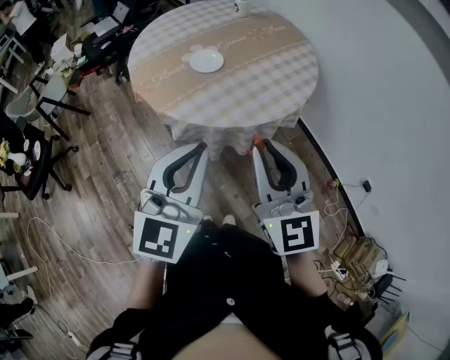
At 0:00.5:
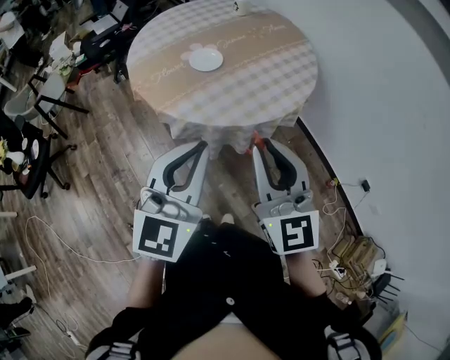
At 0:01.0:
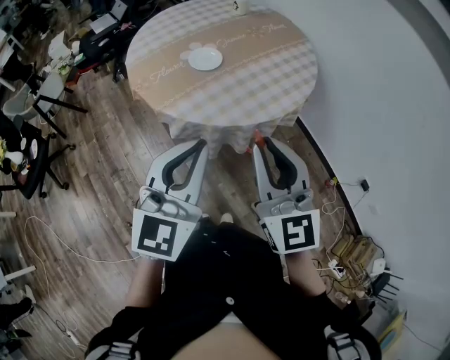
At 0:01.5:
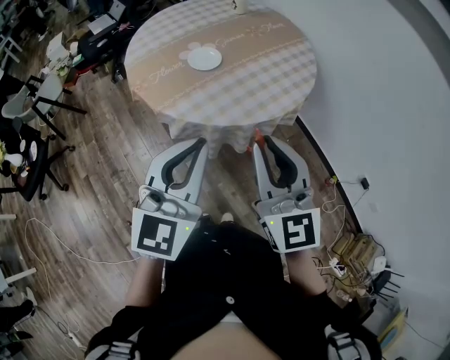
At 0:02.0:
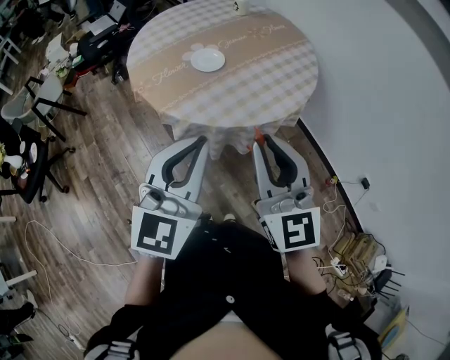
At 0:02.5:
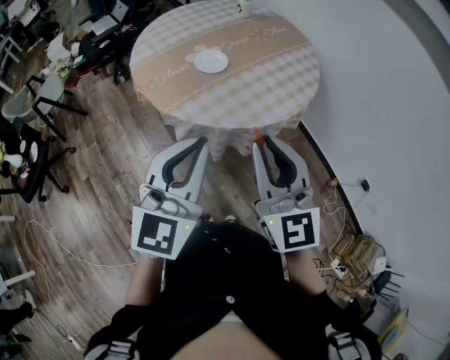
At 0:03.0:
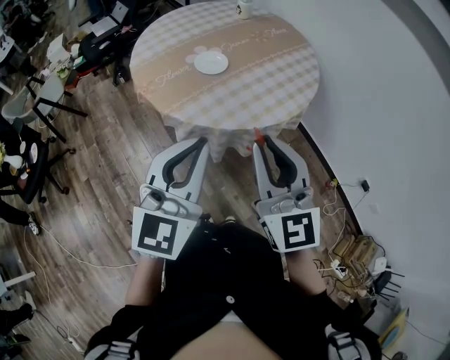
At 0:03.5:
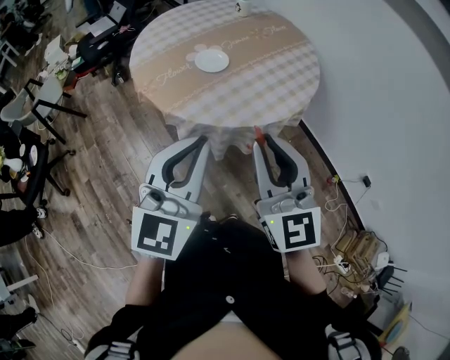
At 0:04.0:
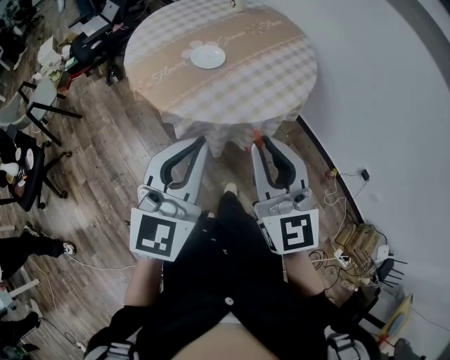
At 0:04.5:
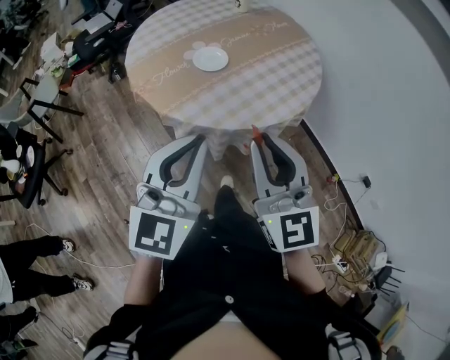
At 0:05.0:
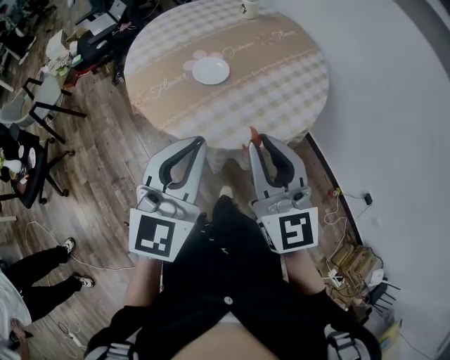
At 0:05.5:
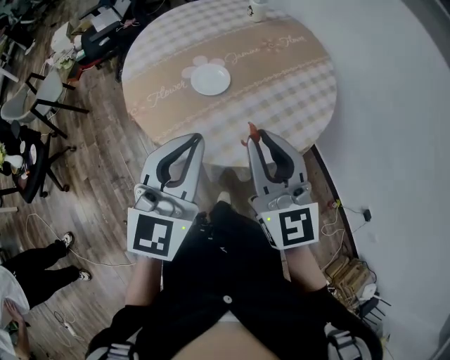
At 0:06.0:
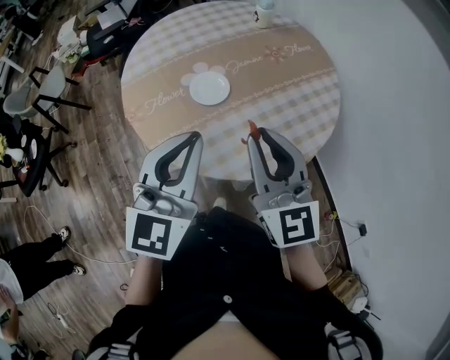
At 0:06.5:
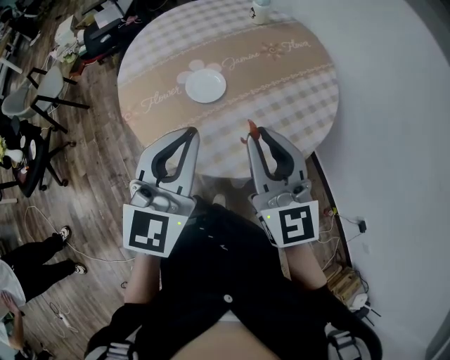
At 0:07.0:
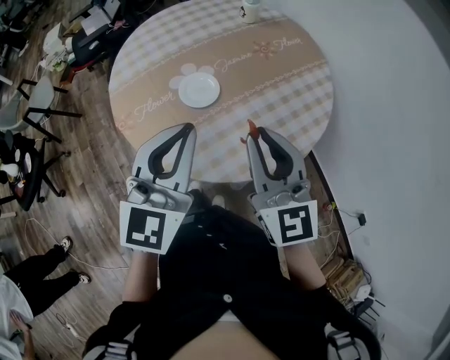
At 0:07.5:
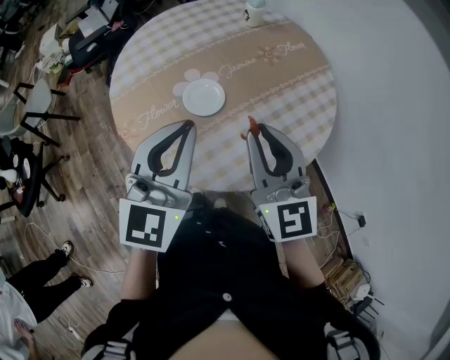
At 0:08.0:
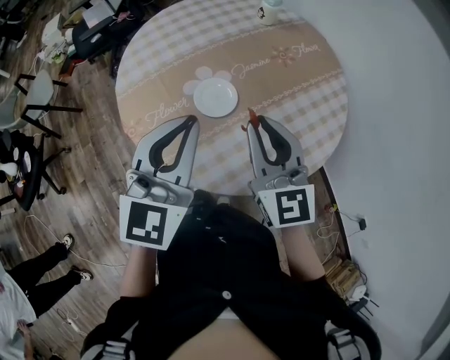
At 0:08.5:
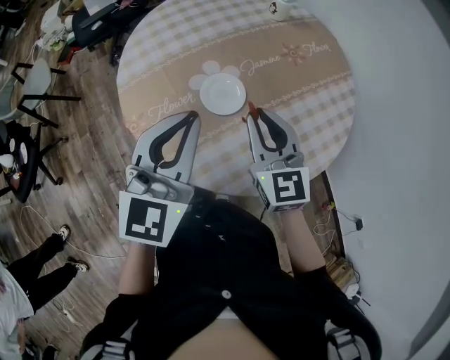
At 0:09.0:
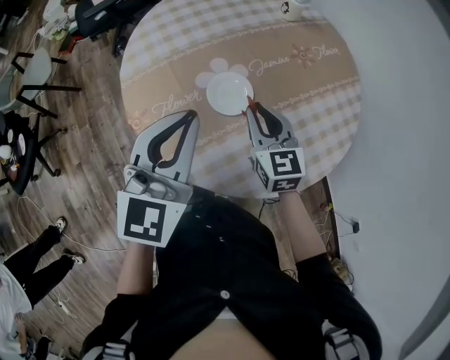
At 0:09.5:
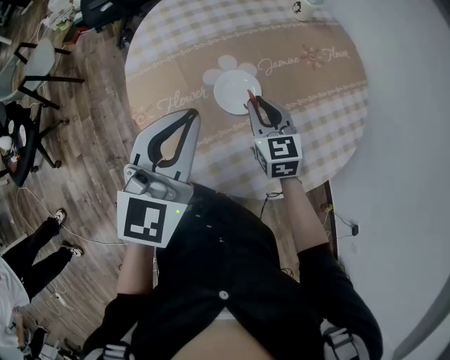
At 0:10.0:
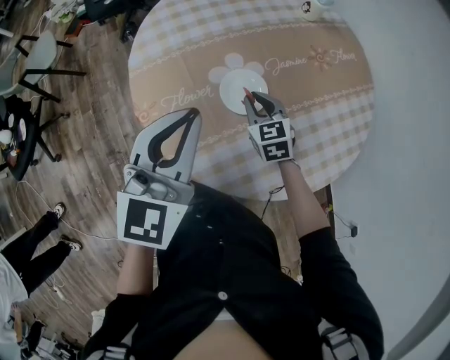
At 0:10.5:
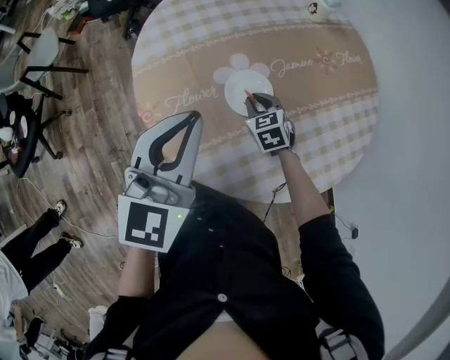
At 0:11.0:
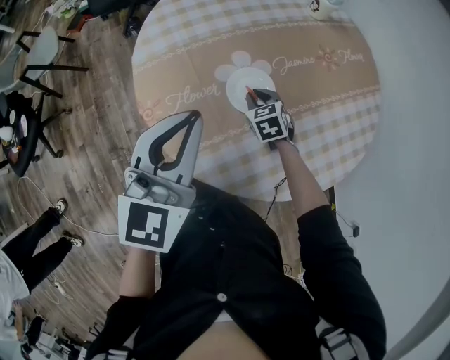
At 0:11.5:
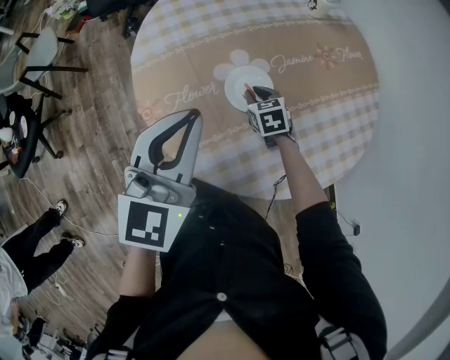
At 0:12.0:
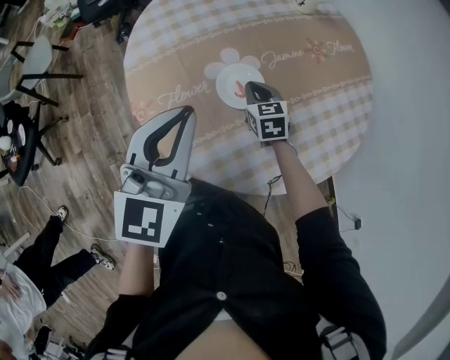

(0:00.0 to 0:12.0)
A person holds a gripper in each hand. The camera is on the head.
0:00.0 - 0:02.0: There are only small adjustments of the grippers.
0:02.0 - 0:04.0: The grippers make only small movements.
0:04.0 - 0:06.0: Both grippers travel together forward, about 25 cm.
0:06.0 - 0:08.0: The right gripper travels forward by about 10 cm; the left gripper travels forward and to the left by some 15 cm.
0:08.0 - 0:10.0: The right gripper is displaced downward and forward by about 30 cm, and points its fingers roughly 30 degrees further downward. Meanwhile the left gripper travels to the left, forward and downward by some 10 cm.

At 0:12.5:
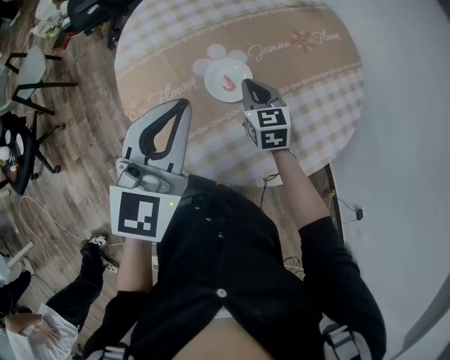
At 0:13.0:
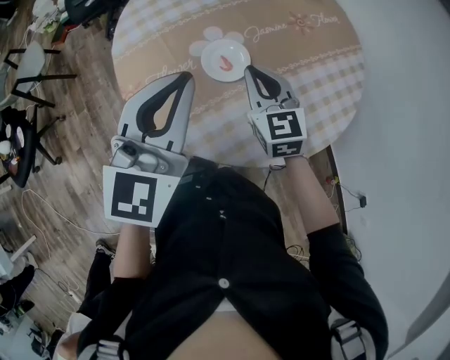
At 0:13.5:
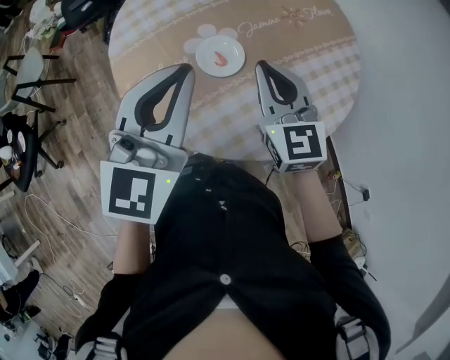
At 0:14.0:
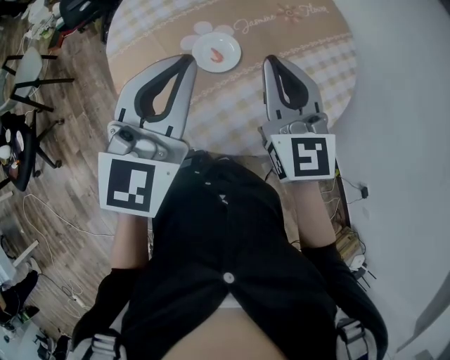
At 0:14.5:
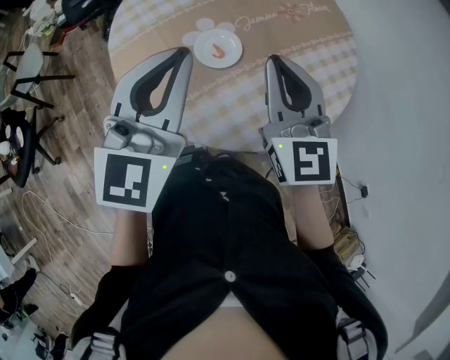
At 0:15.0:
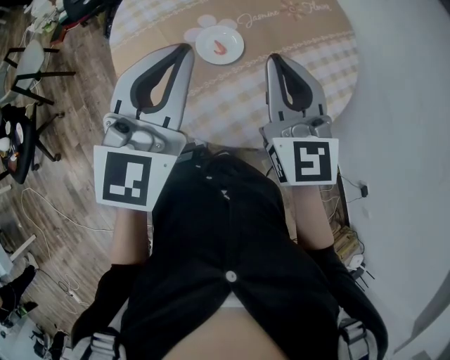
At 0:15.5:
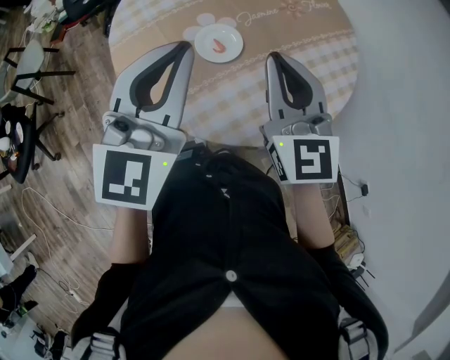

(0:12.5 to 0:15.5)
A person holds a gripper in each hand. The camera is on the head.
0:12.5 - 0:14.0: The right gripper moves upward and backward, roughly 25 cm, and rotates approximately 30 degrees, while the left gripper heads upward, covering some 5 cm.
0:14.0 - 0:15.5: The grippers move only a little.

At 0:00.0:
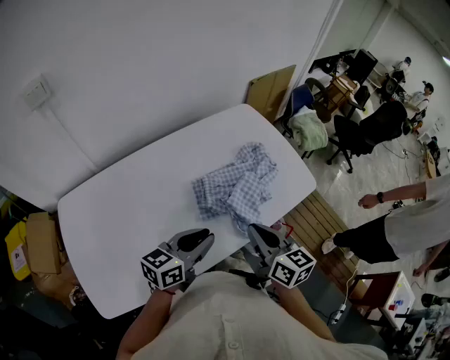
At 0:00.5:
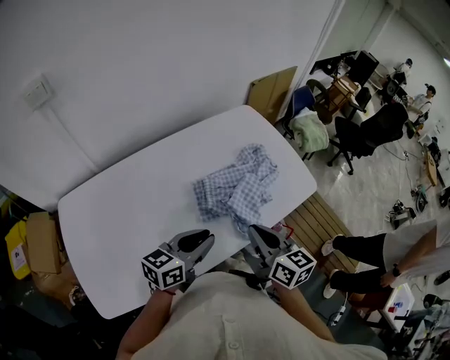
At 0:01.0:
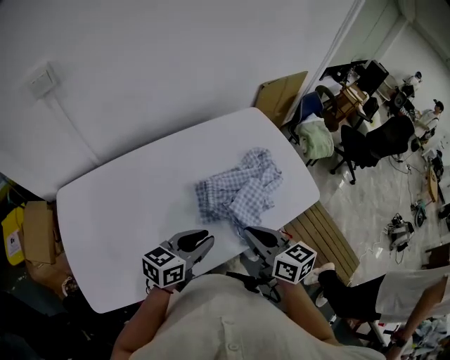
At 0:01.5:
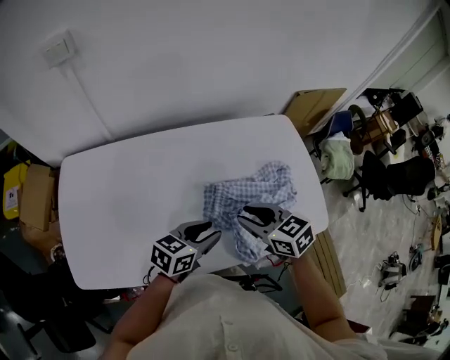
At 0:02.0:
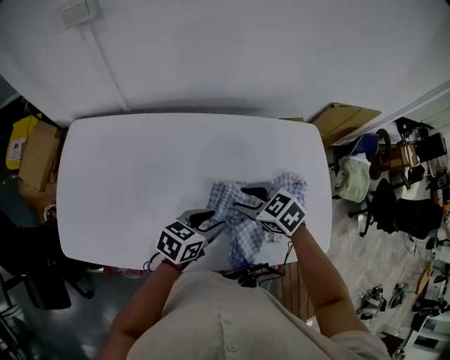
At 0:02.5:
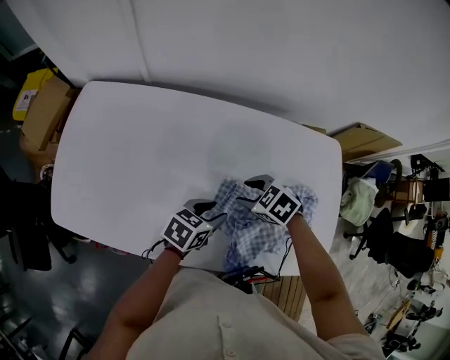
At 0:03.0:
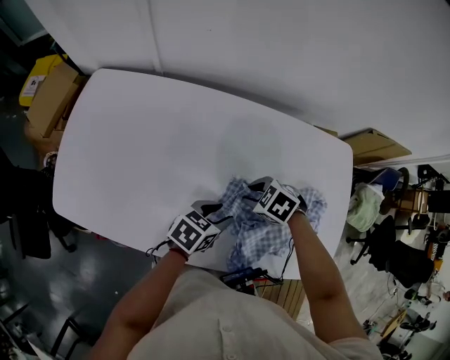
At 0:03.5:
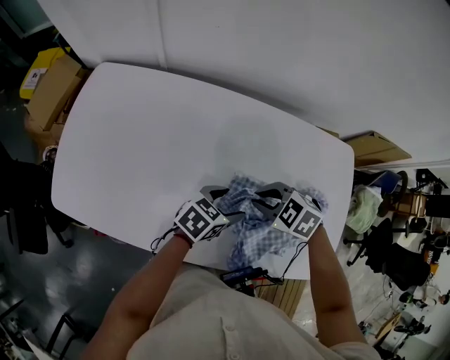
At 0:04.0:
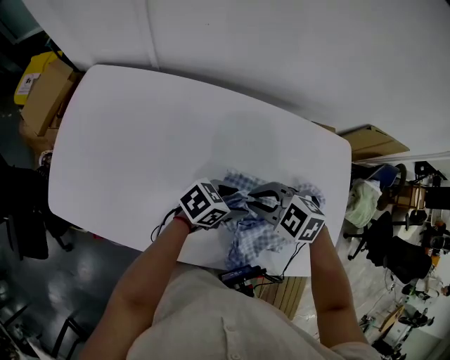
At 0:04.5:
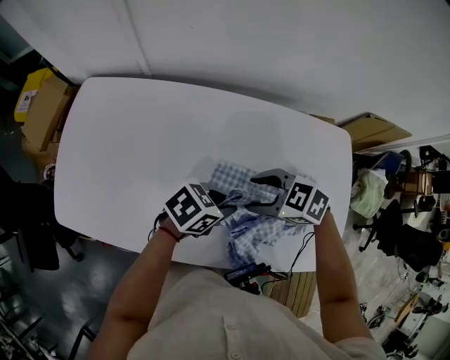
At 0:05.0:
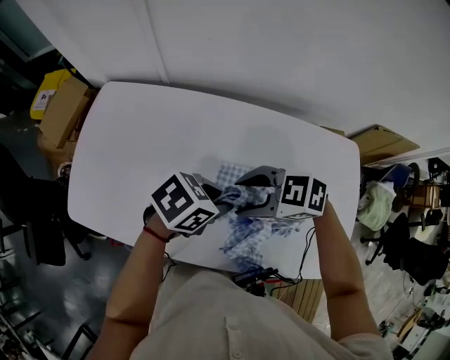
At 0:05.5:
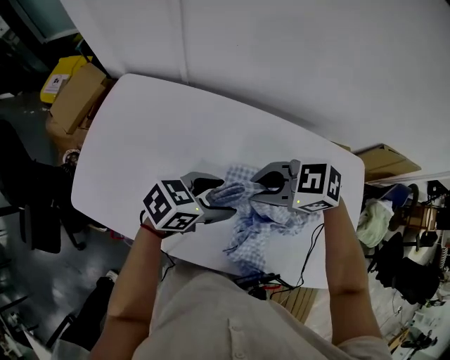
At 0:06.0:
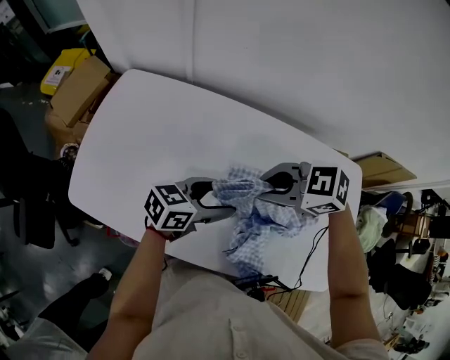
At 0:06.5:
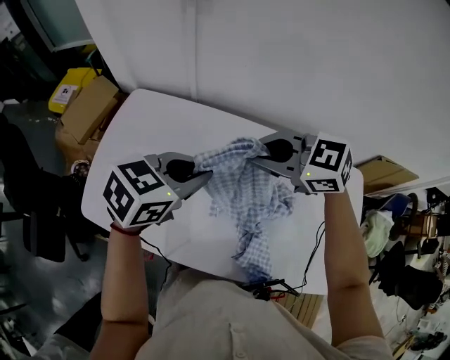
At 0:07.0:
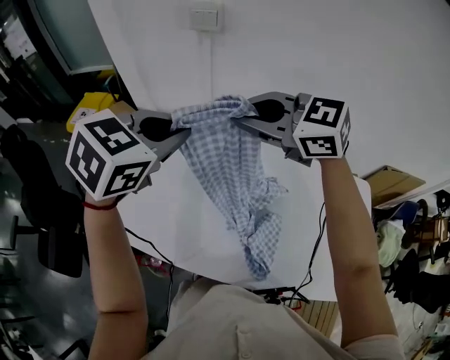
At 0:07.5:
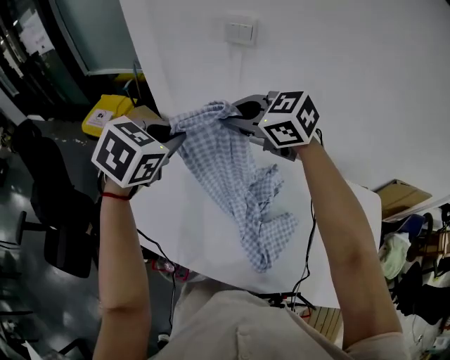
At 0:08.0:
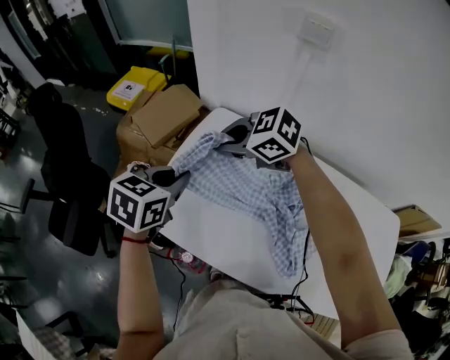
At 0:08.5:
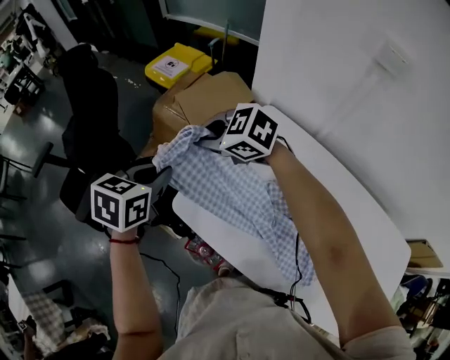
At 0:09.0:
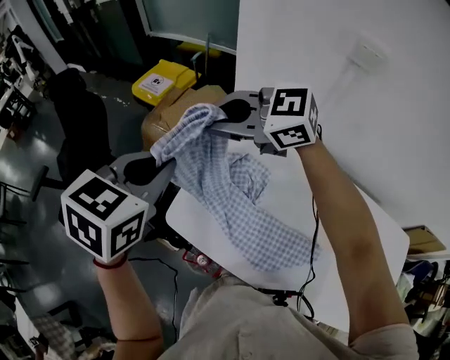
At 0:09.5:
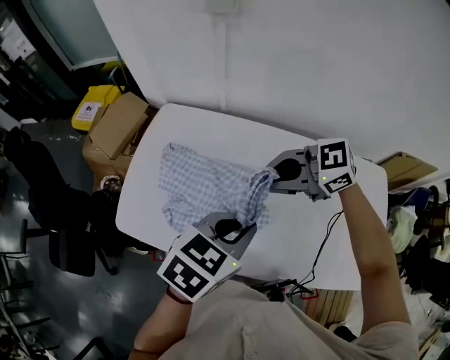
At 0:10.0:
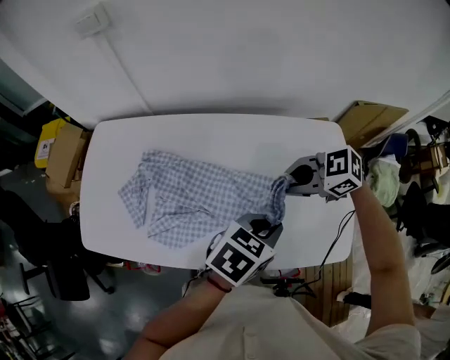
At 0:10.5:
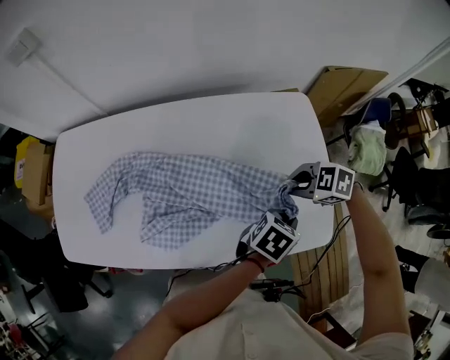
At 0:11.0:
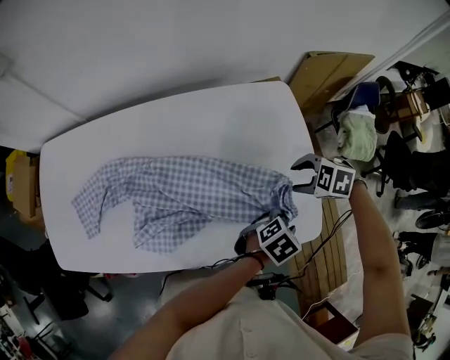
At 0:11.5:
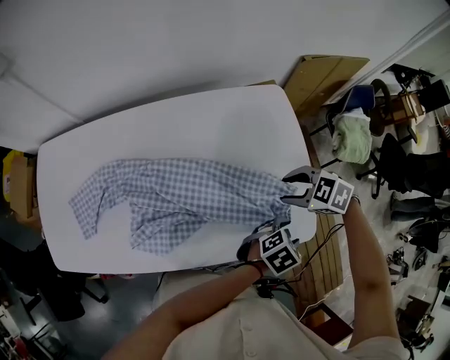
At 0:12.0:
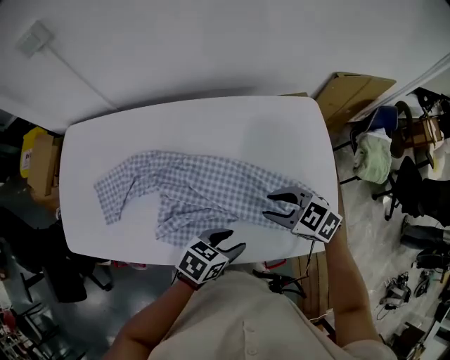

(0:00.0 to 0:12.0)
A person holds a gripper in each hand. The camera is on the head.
0:00.0 - 0:02.0: The left gripper moves some 15 cm, and rotates some 30 degrees; the right gripper shifts by about 25 cm, points its fingers about 40 degrees further downward, and opens.
0:02.0 - 0:04.0: The right gripper travels downward and back again, some 10 cm each way, changes its angle by some 40 degrees, and closes its fingers. Meanwhile the left gripper travels downward by roughly 5 cm, and opens.
0:04.0 - 0:06.0: The left gripper shifts by roughly 15 cm, swivels approximately 20 degrees, and closes, then reopens, while the right gripper shifts about 10 cm upward, swivels about 20 degrees, and opens and closes again.
0:06.0 - 0:08.0: The left gripper moves about 40 cm, swivels about 40 degrees, and closes, while the right gripper ends up some 40 cm from where it was.
0:08.0 - 0:10.0: Both grippers are carried some 60 cm. The left gripper turns by approximately 50 degrees. Meanwhile the right gripper rotates about 20 degrees.
0:10.0 - 0:12.0: The right gripper rotates some 30 degrees, and opens its fingers, while the left gripper goes approximately 15 cm downward, and opens its fingers.
